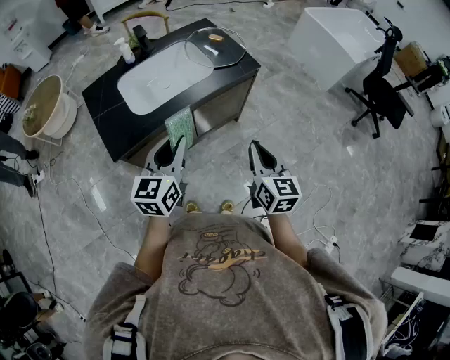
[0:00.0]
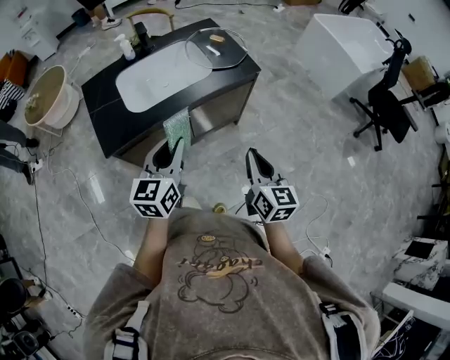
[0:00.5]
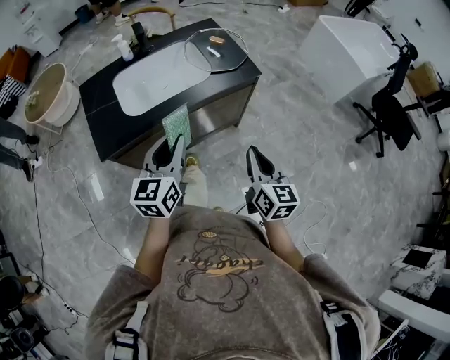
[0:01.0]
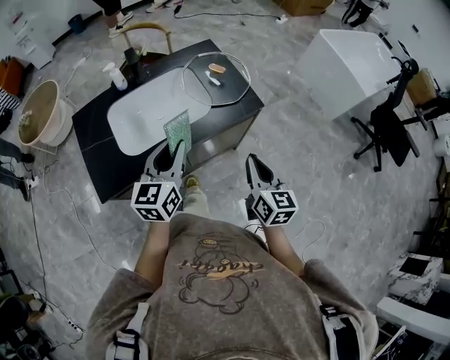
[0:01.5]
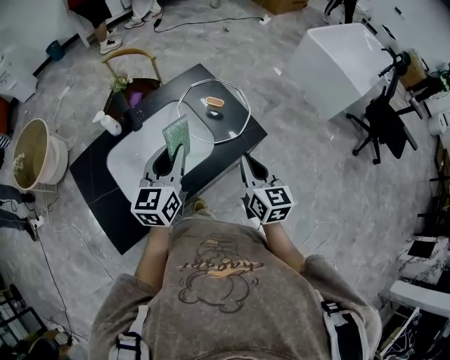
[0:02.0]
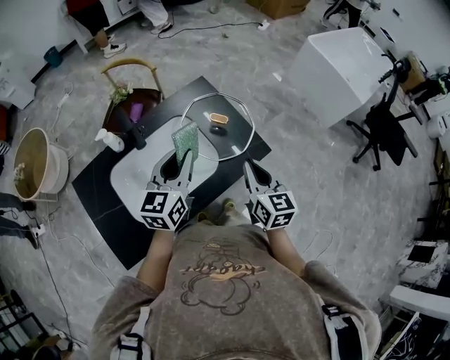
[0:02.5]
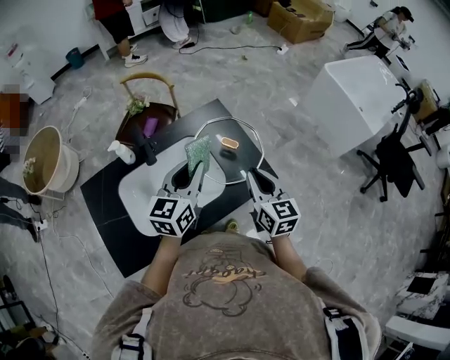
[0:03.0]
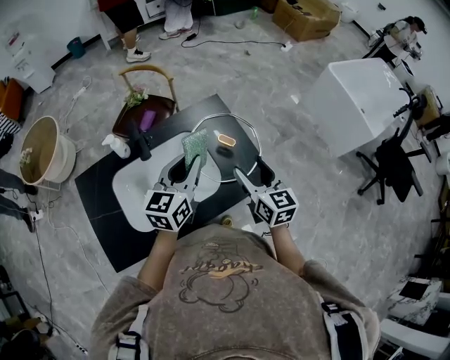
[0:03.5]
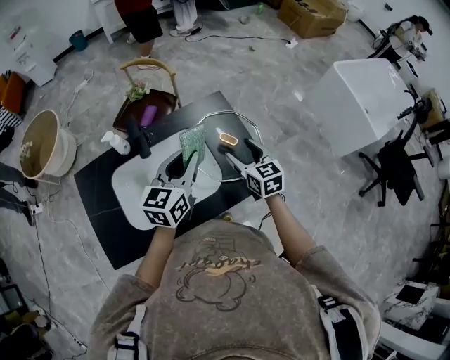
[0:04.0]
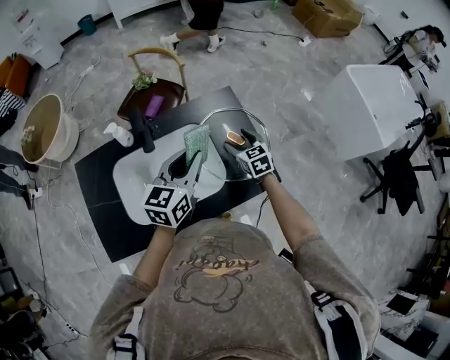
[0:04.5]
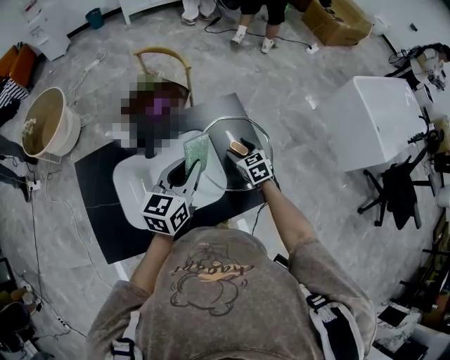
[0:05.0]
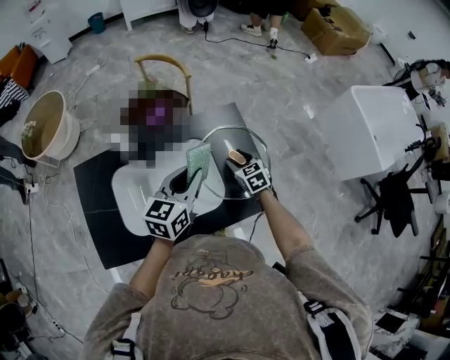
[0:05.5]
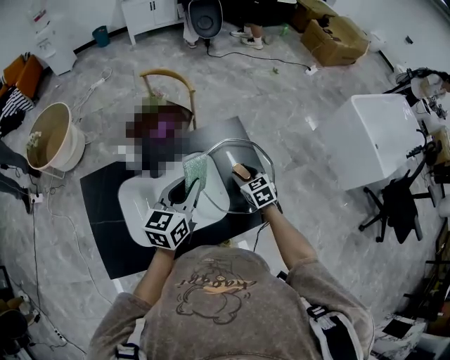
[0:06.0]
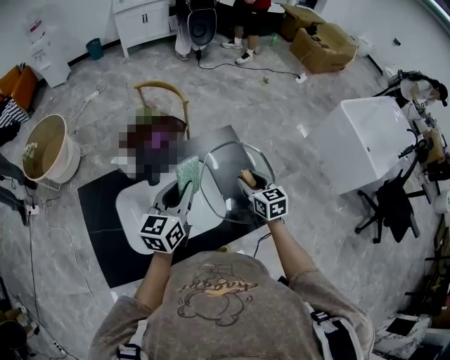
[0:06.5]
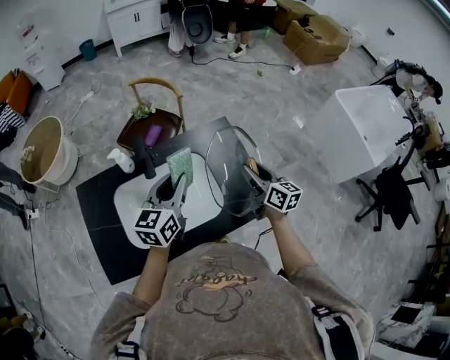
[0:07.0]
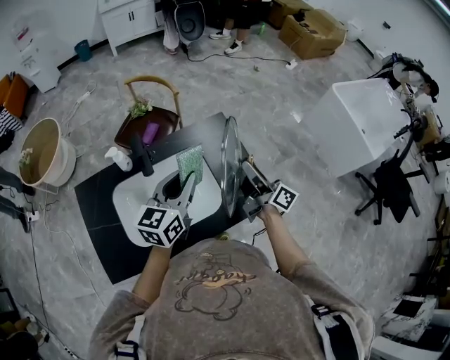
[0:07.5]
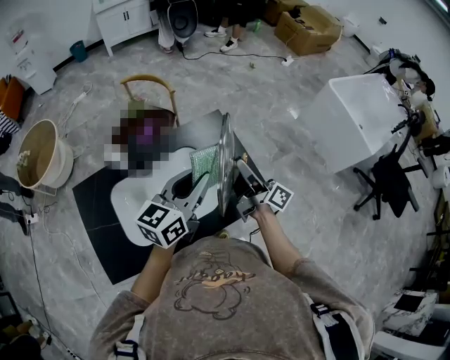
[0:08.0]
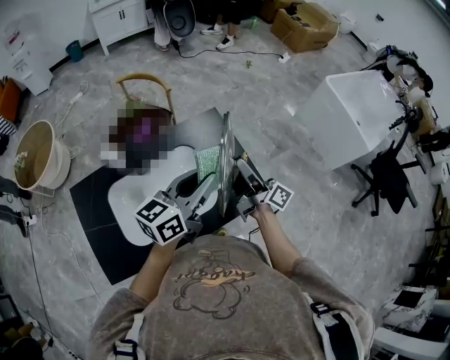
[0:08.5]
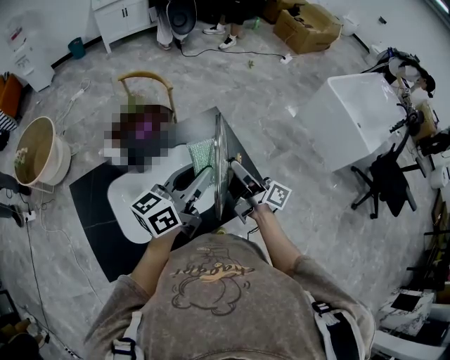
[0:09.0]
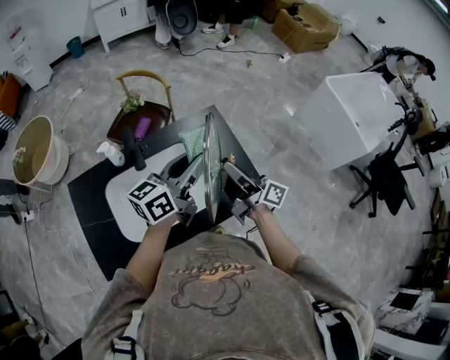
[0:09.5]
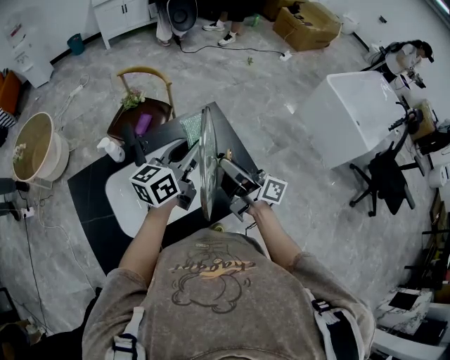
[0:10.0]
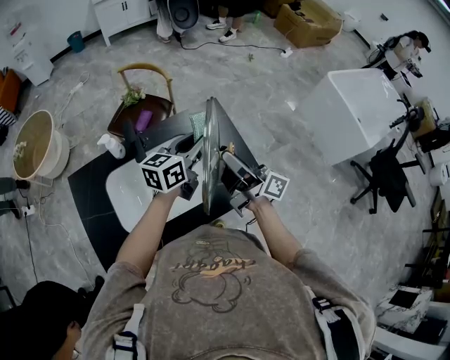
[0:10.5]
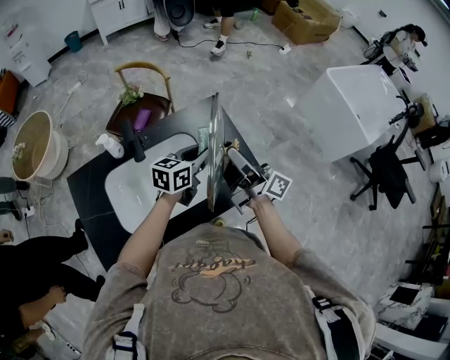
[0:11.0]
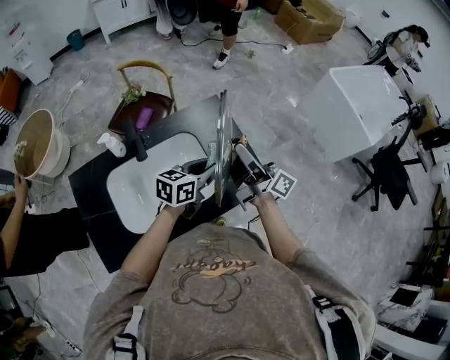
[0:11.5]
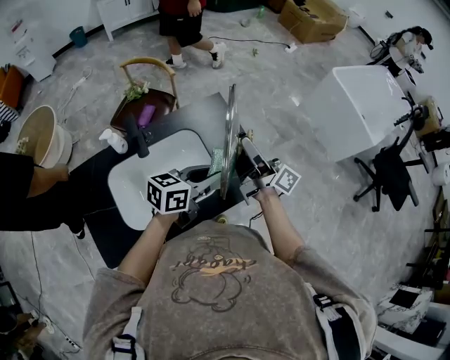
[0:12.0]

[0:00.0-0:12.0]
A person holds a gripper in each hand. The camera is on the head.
0:00.0 to 0:02.0: Both grippers travel together forward, some 35 cm.
0:02.0 to 0:04.0: The right gripper is displaced forward by about 20 cm, swivels roughly 30 degrees, and opens up, while the left gripper heads forward, covering some 10 cm.
0:04.0 to 0:06.0: The left gripper shifts by roughly 5 cm. The right gripper moves downward and forward, about 15 cm, changes its angle by roughly 20 degrees, and closes up.
0:06.0 to 0:08.0: The left gripper travels upward and to the right by some 10 cm, while the right gripper goes roughly 20 cm upward and backward, and angles its fingers upward, by about 60 degrees.
0:08.0 to 0:10.0: The left gripper goes roughly 5 cm forward, while the right gripper goes roughly 5 cm to the left.
0:10.0 to 0:12.0: The left gripper shifts roughly 10 cm backward and downward, and changes its angle by roughly 30 degrees, while the right gripper shifts by approximately 5 cm.

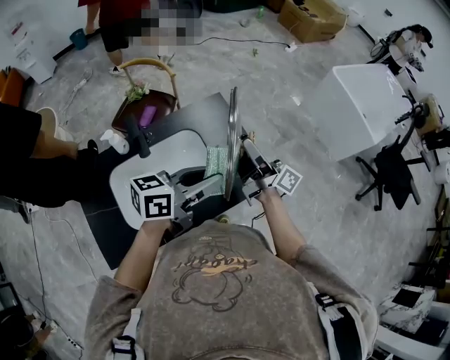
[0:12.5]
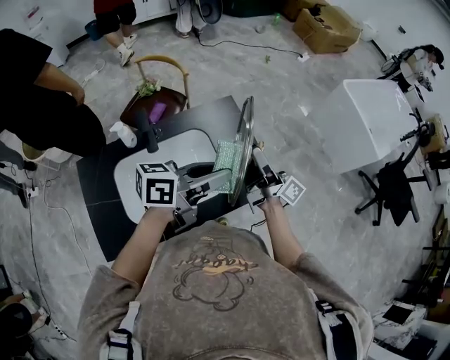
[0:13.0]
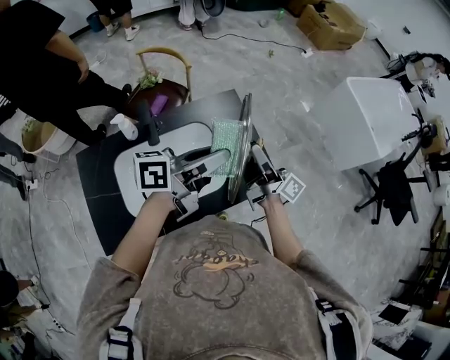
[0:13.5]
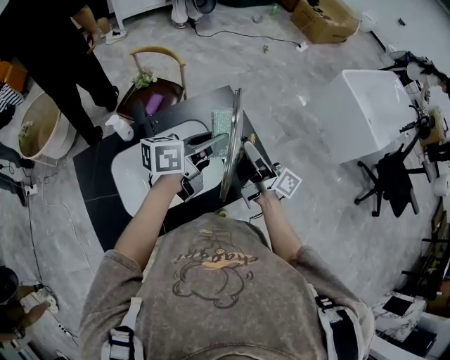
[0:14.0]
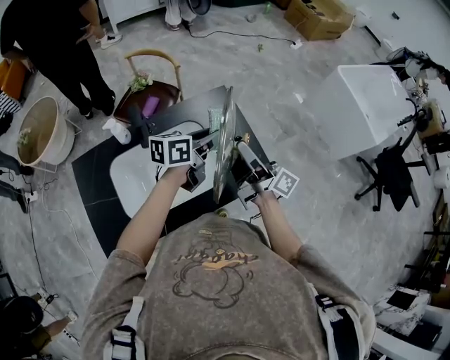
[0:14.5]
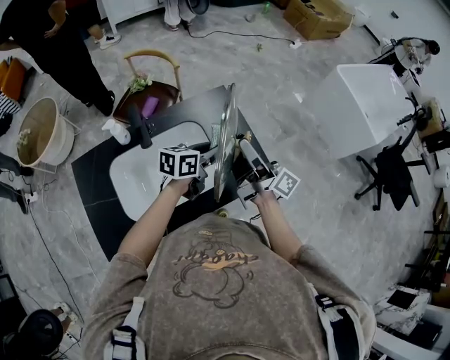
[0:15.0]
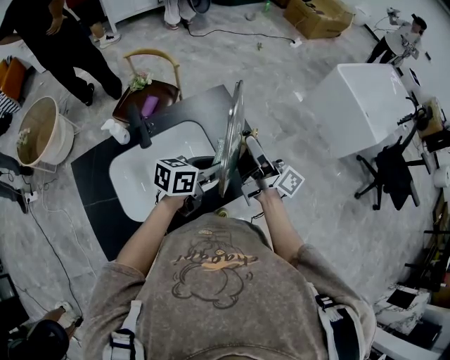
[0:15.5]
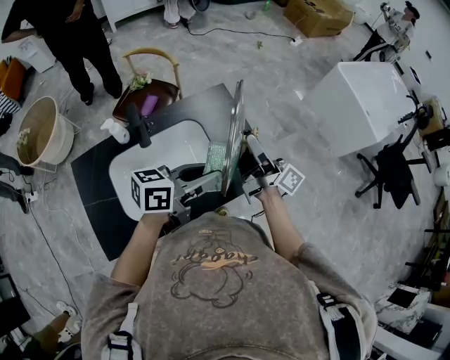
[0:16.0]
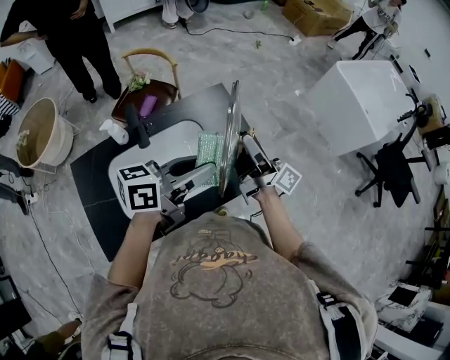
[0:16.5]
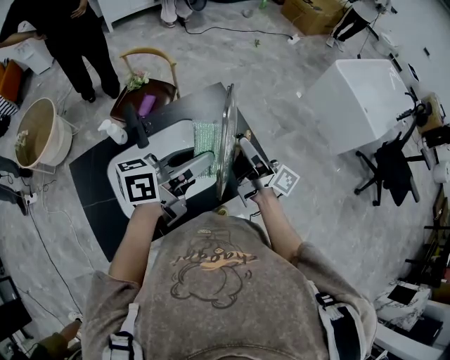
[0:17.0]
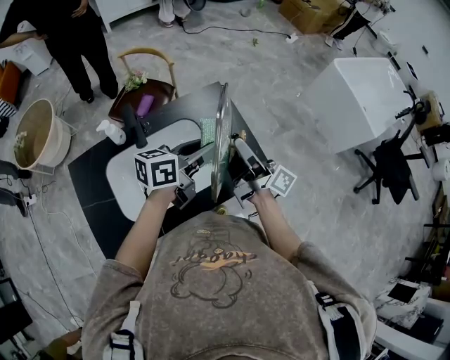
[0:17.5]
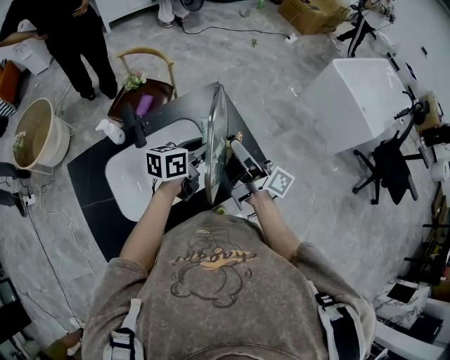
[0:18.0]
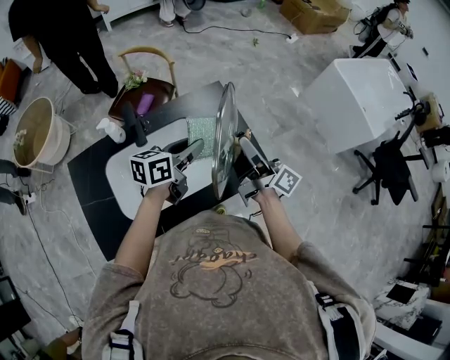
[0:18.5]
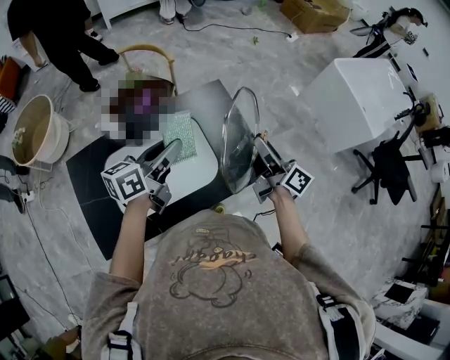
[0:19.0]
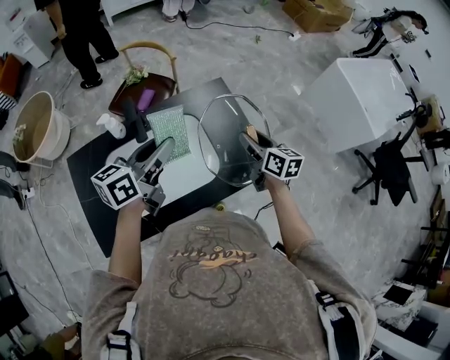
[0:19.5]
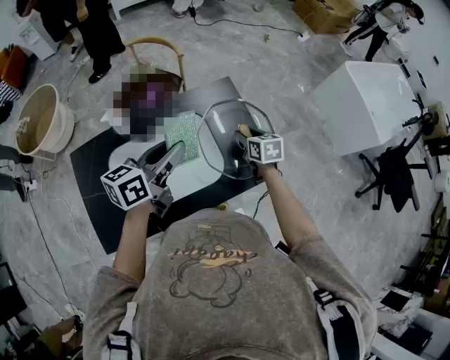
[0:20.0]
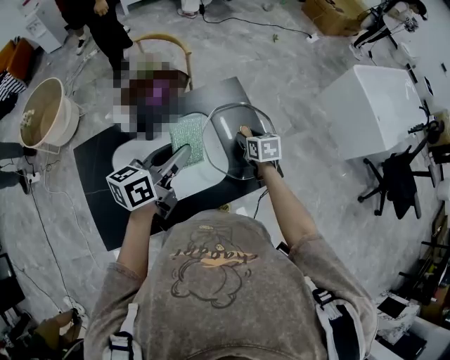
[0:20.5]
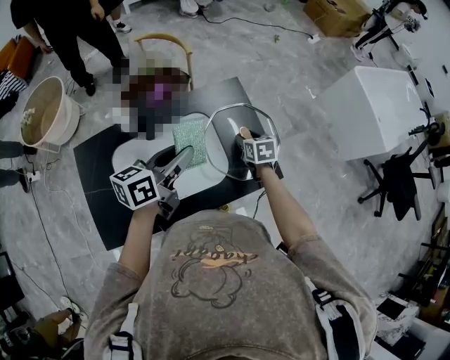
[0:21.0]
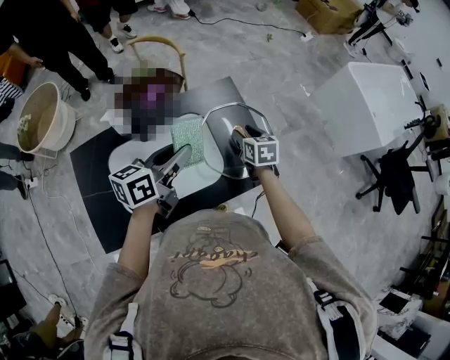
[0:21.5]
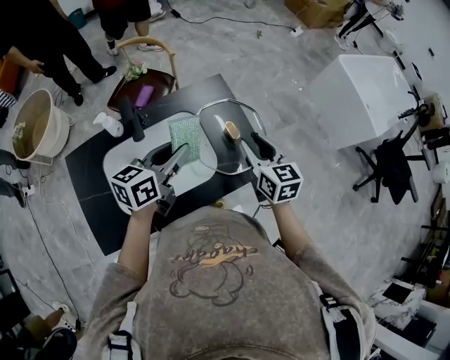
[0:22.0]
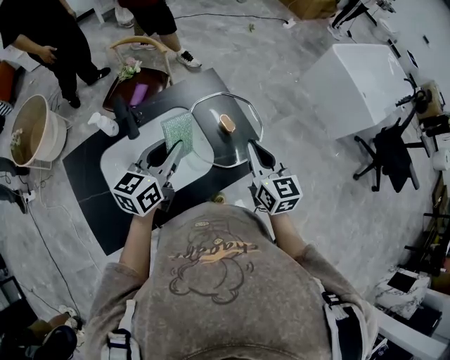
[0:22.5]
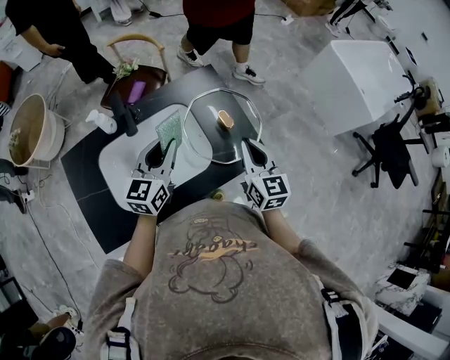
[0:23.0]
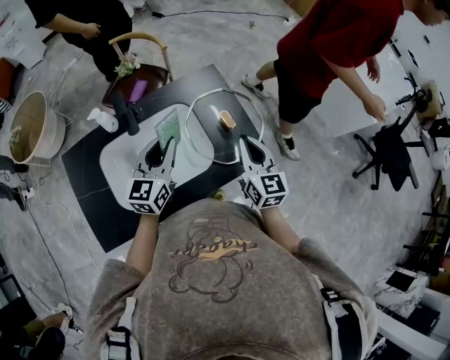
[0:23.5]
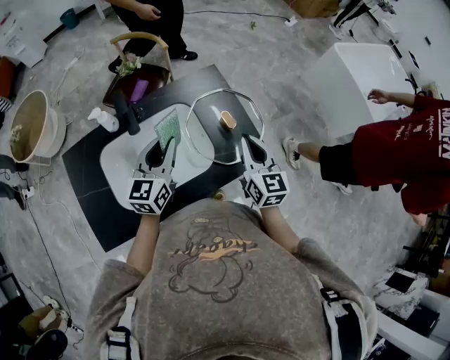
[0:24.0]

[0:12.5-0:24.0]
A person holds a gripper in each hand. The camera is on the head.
0:12.5 to 0:14.5: The left gripper heads forward and downward, covering about 15 cm.
0:14.5 to 0:16.5: The left gripper goes some 15 cm backward and upward.
0:16.5 to 0:18.5: The left gripper shifts roughly 15 cm downward and forward.
0:18.5 to 0:20.0: The right gripper shifts approximately 20 cm downward and forward, and tips its fingers downward by some 60 degrees, while the left gripper shifts approximately 10 cm to the left and upward.
0:20.0 to 0:22.0: The right gripper travels upward and backward by some 15 cm, and rotates about 20 degrees.
0:22.0 to 0:24.0: The left gripper changes its angle by some 30 degrees. The right gripper closes up.

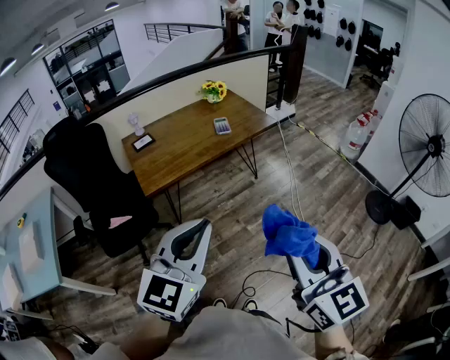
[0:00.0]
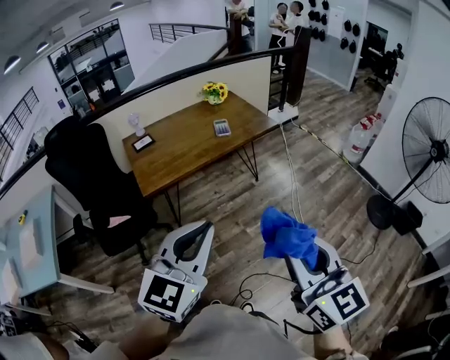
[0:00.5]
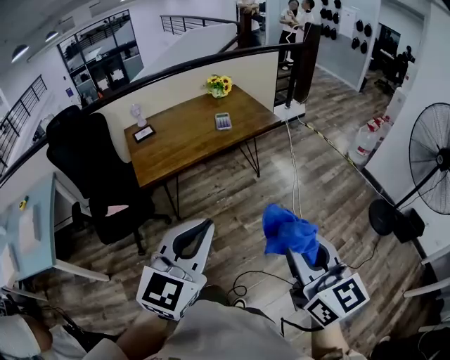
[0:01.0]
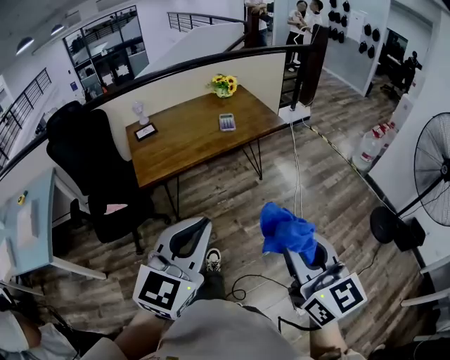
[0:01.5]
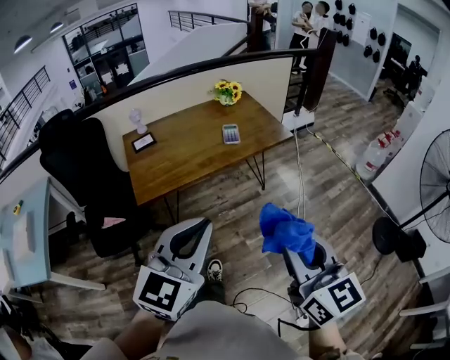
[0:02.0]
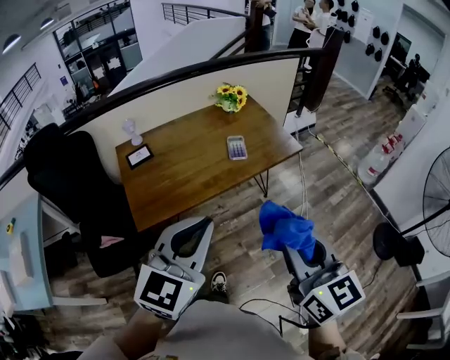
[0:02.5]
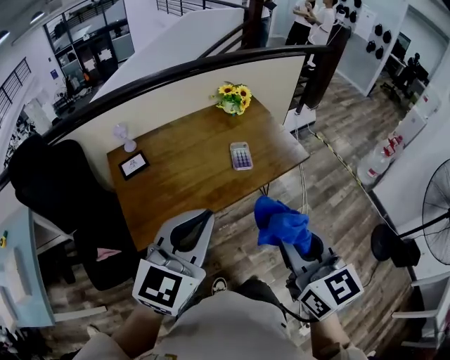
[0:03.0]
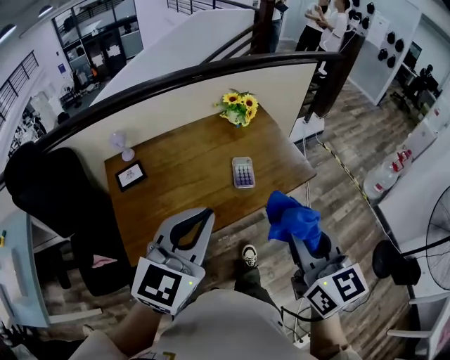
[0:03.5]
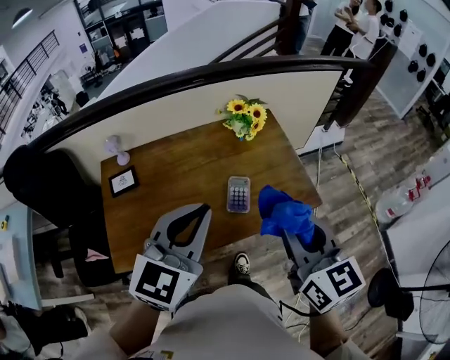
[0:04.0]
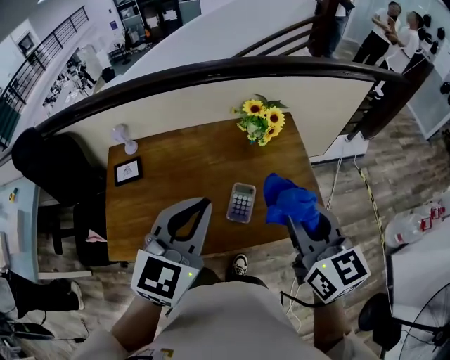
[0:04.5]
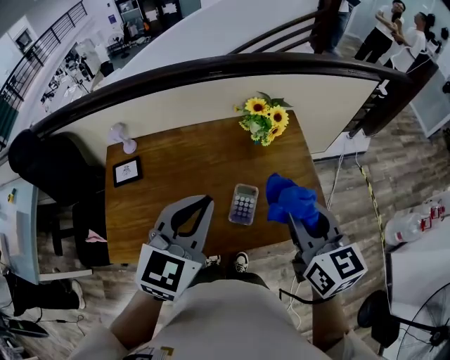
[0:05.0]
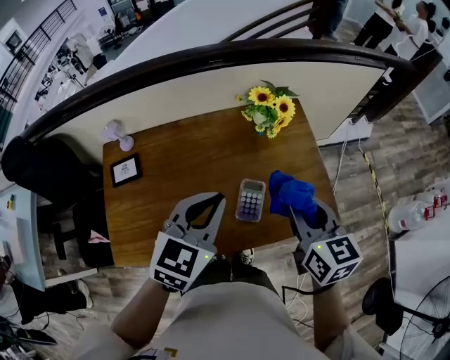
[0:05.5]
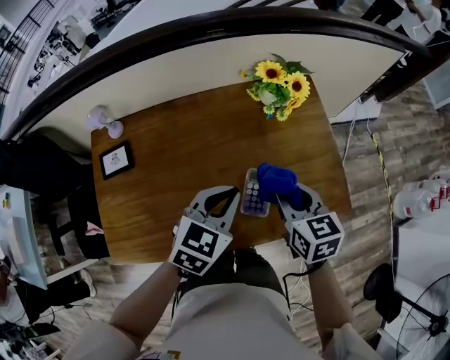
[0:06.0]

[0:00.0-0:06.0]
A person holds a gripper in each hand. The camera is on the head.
0:00.0 to 0:02.0: Both grippers move forward, roughly 15 cm.
0:02.0 to 0:04.0: Both grippers are carried forward, approximately 60 cm.
0:04.0 to 0:06.0: Both grippers move downward and forward, about 30 cm. The left gripper changes its angle by approximately 30 degrees. Meanwhile the right gripper swivels roughly 30 degrees.
